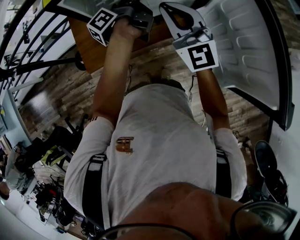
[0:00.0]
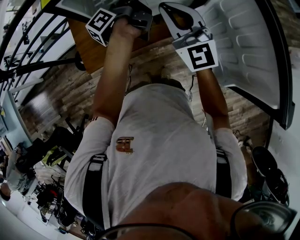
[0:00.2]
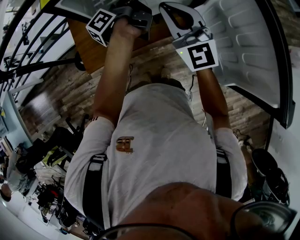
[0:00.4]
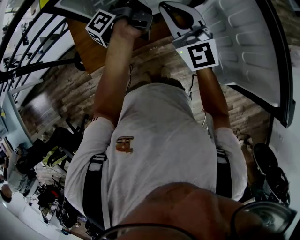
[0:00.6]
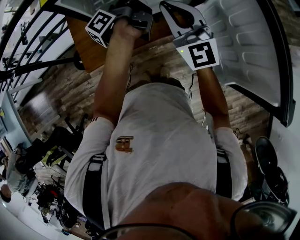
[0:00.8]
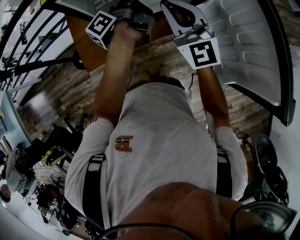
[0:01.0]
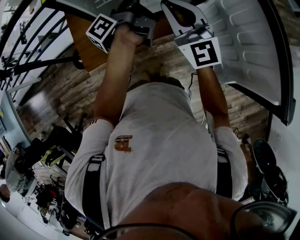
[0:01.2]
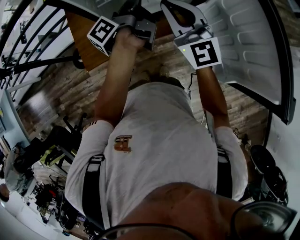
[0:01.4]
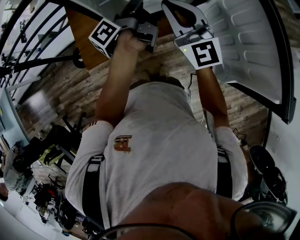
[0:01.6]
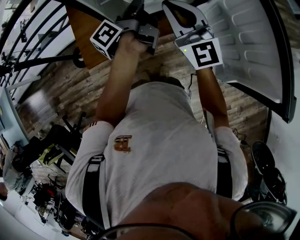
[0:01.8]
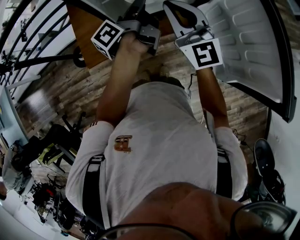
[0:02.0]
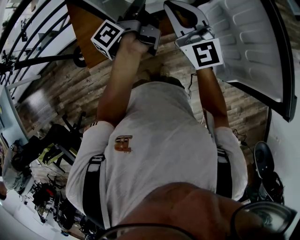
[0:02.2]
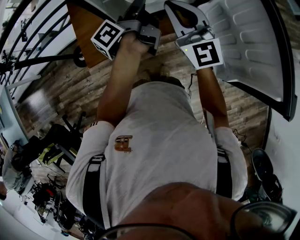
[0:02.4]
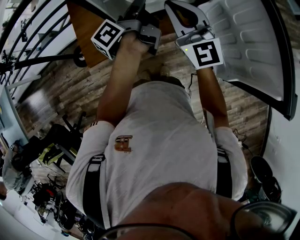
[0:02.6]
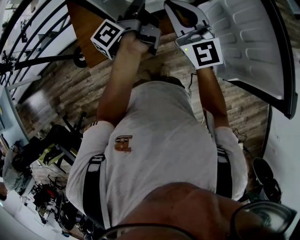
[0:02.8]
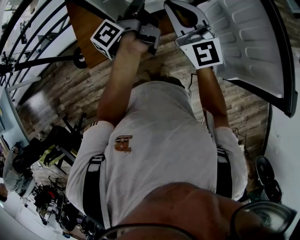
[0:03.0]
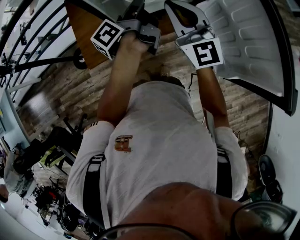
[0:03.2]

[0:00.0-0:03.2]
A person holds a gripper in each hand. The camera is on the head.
0:00.0 to 0:01.6: The grippers move only a little.
0:01.6 to 0:03.2: The grippers stay close to where they were, moving slightly.

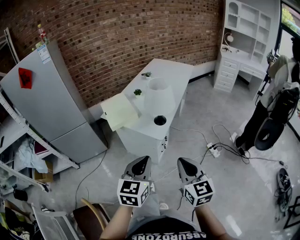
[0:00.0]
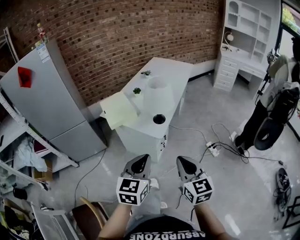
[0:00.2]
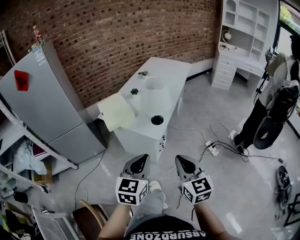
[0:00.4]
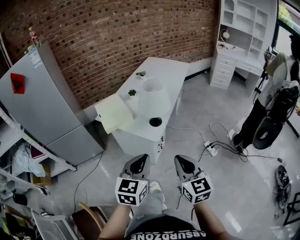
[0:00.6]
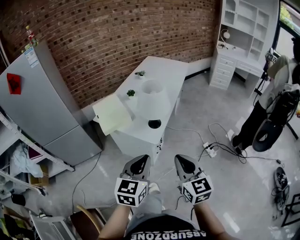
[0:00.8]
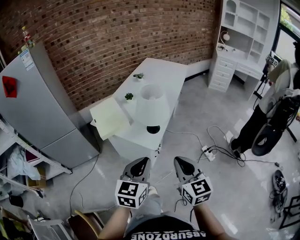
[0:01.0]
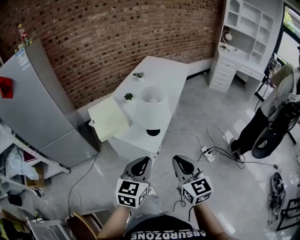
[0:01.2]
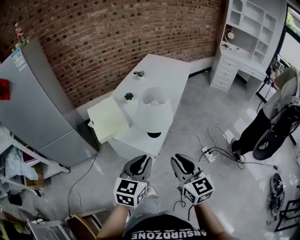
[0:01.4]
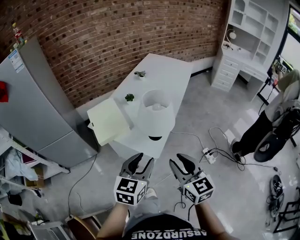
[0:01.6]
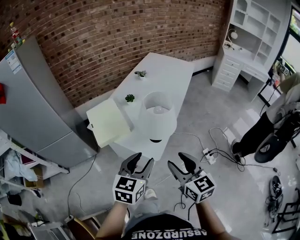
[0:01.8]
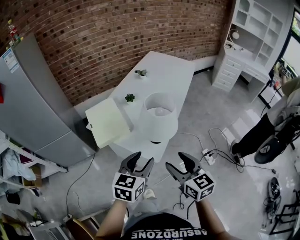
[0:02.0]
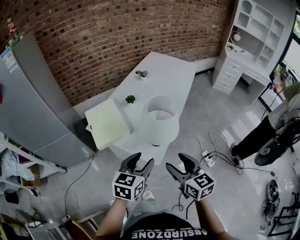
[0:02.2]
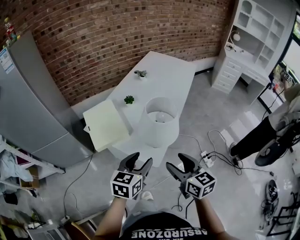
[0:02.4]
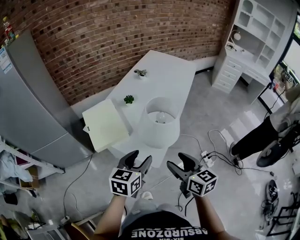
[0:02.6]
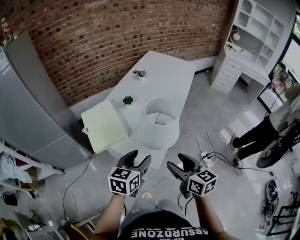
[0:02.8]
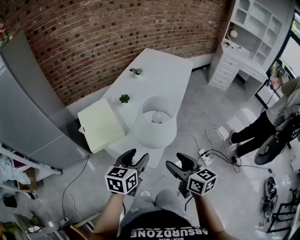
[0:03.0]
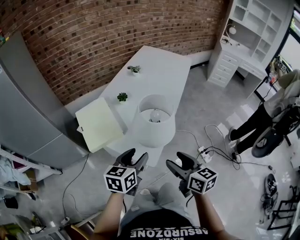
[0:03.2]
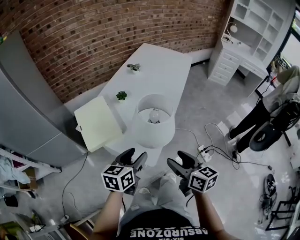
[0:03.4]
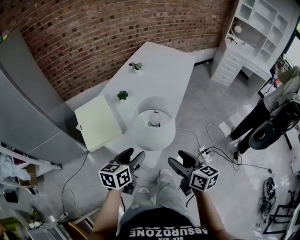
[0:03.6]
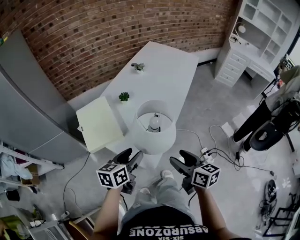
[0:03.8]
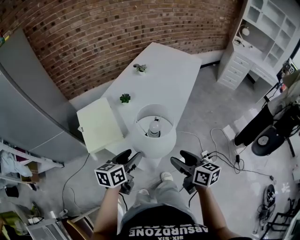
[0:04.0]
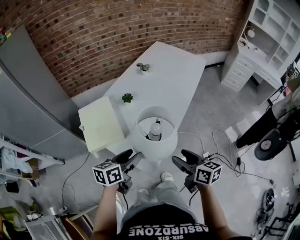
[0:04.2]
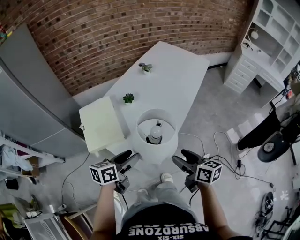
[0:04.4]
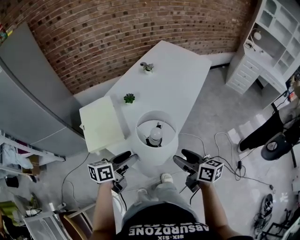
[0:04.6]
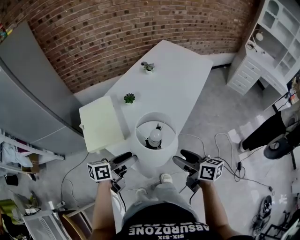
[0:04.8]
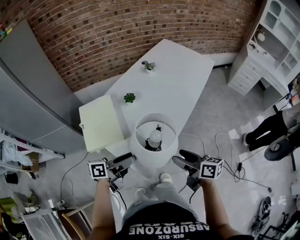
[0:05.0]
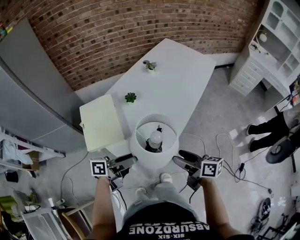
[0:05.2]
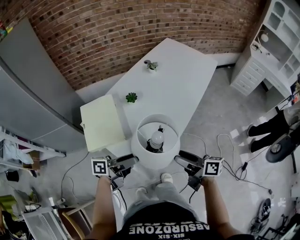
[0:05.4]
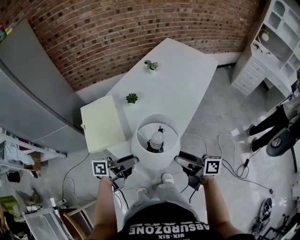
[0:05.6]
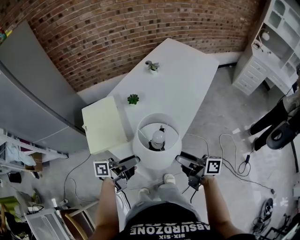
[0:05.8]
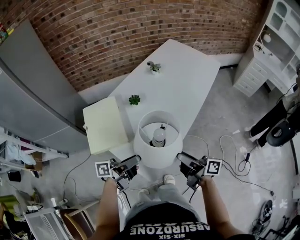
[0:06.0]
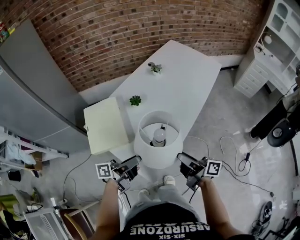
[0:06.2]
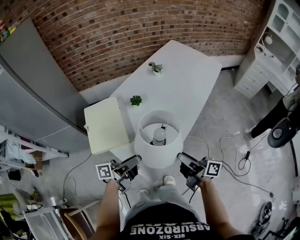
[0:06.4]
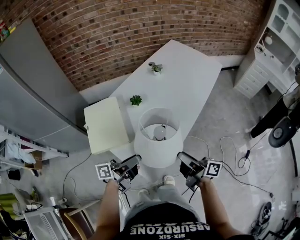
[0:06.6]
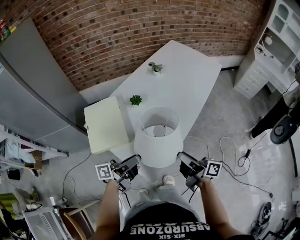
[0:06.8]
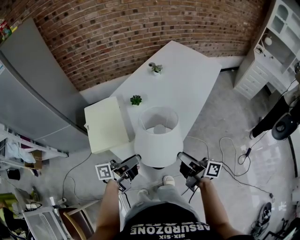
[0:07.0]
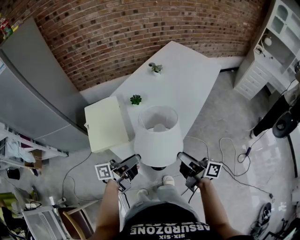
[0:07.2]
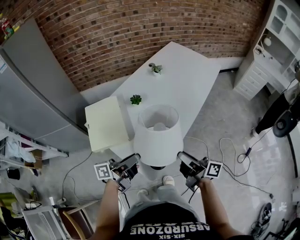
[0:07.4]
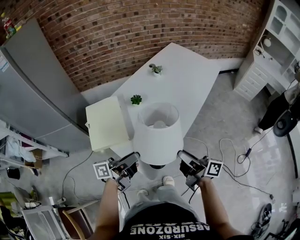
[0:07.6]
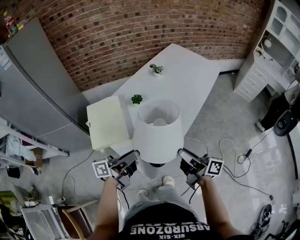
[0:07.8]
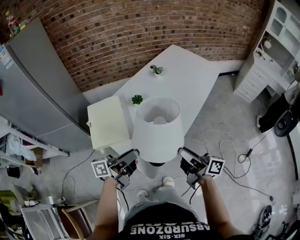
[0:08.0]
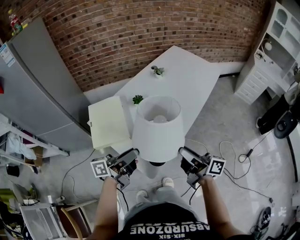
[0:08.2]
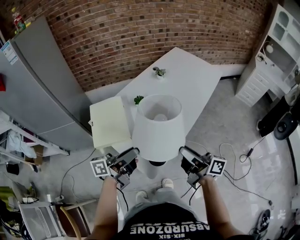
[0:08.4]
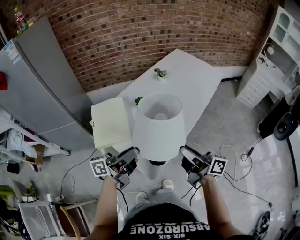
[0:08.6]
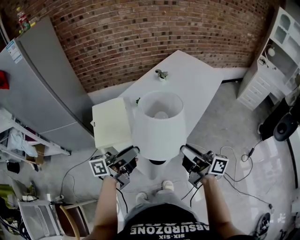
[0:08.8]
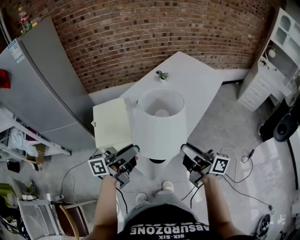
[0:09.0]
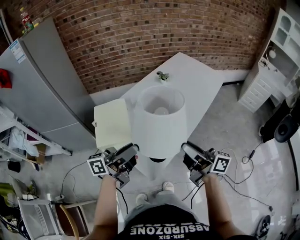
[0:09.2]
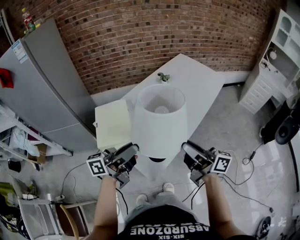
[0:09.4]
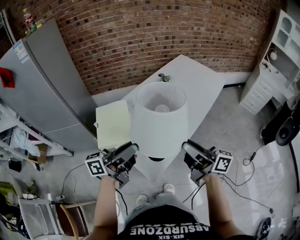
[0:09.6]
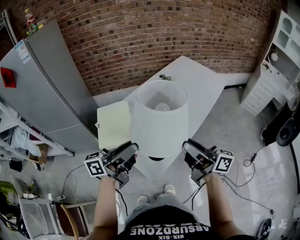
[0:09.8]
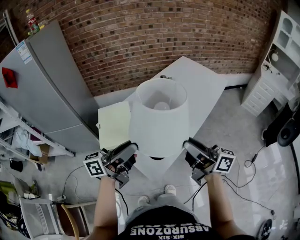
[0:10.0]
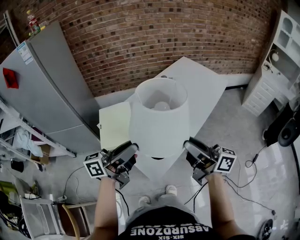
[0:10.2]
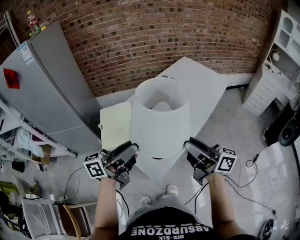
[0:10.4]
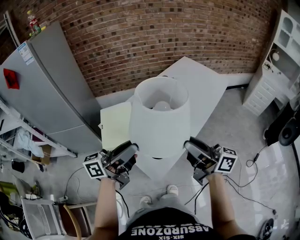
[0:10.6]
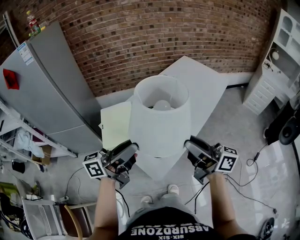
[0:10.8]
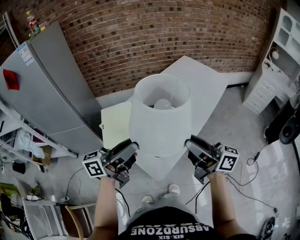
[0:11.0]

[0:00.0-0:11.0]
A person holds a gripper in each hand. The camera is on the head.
0:00.0 to 0:01.6: The two grippers go roughly 20 cm forward. The right gripper opens its fingers; the left gripper opens up.
0:01.6 to 0:03.2: The grippers both shift forward and downward by some 15 cm. The right gripper changes its angle by some 20 degrees, and opens up.
0:03.2 to 0:04.8: The left gripper shifts some 10 cm forward, and swivels some 30 degrees, while the right gripper shifts approximately 15 cm forward and to the right, and changes its angle by some 20 degrees.
0:04.8 to 0:06.2: The left gripper turns by approximately 30 degrees; the right gripper changes its angle by approximately 30 degrees.
0:06.2 to 0:07.8: The left gripper moves approximately 5 cm.
0:07.8 to 0:09.4: The grippers both shift upward by some 10 cm.
0:09.4 to 0:11.0: The right gripper shifts by some 5 cm. Meanwhile the left gripper is displaced upward by roughly 5 cm.

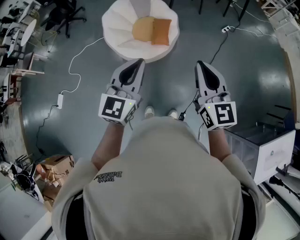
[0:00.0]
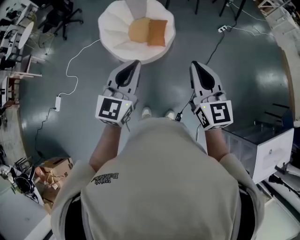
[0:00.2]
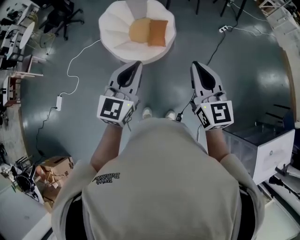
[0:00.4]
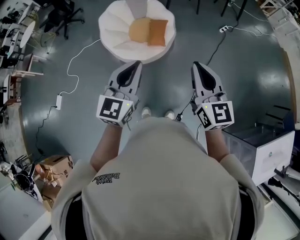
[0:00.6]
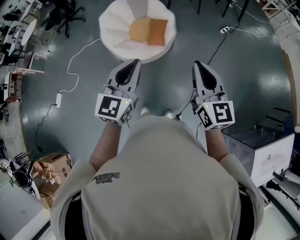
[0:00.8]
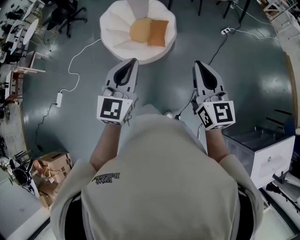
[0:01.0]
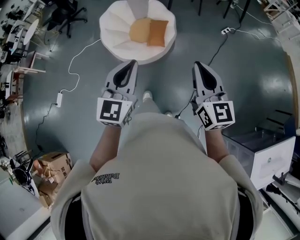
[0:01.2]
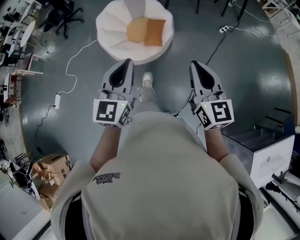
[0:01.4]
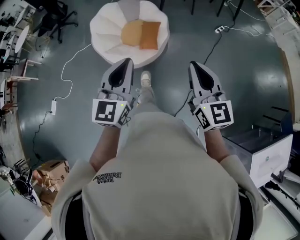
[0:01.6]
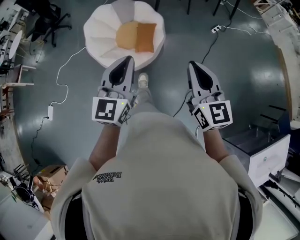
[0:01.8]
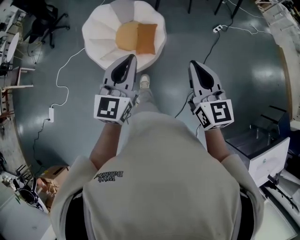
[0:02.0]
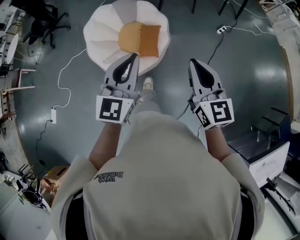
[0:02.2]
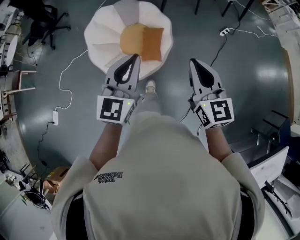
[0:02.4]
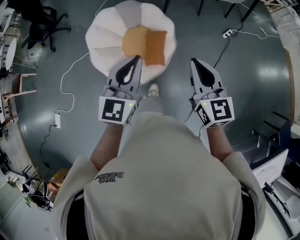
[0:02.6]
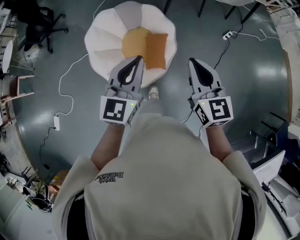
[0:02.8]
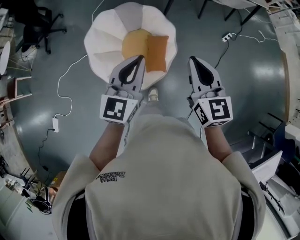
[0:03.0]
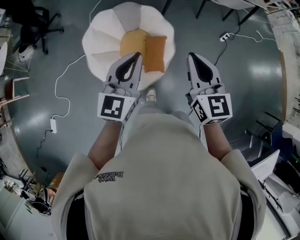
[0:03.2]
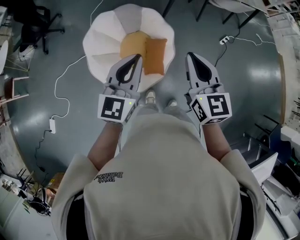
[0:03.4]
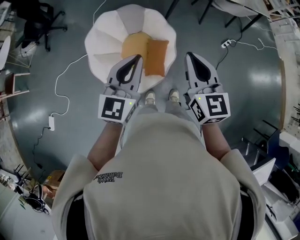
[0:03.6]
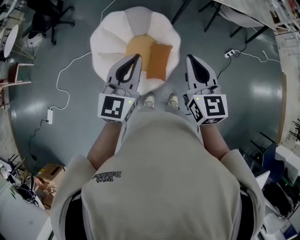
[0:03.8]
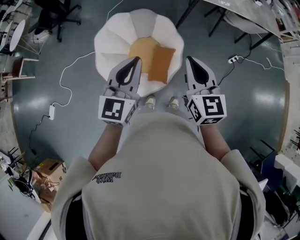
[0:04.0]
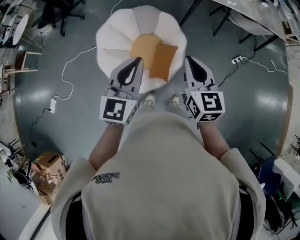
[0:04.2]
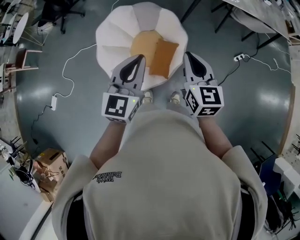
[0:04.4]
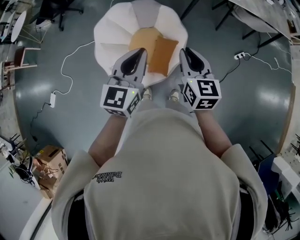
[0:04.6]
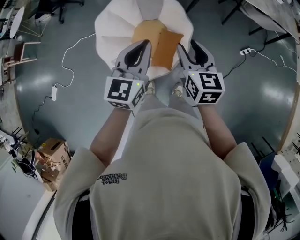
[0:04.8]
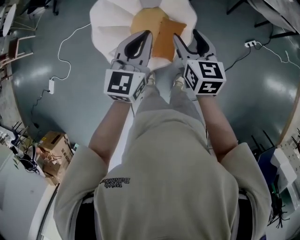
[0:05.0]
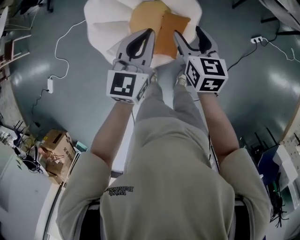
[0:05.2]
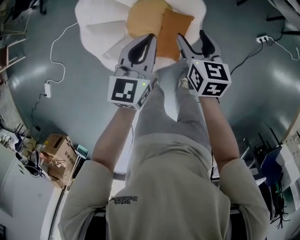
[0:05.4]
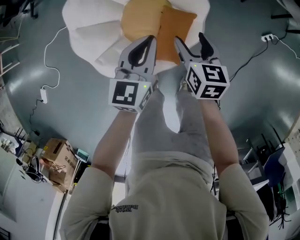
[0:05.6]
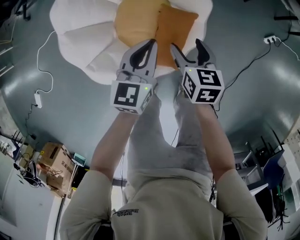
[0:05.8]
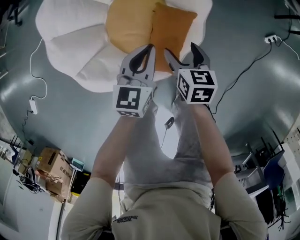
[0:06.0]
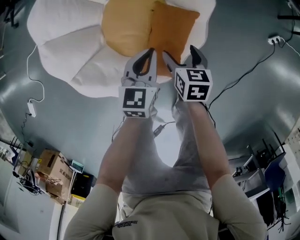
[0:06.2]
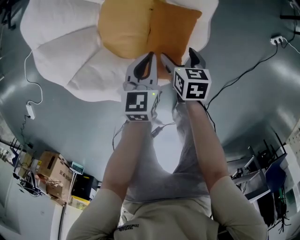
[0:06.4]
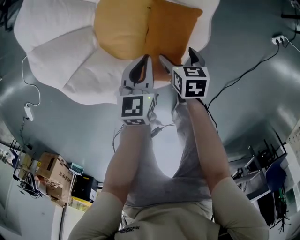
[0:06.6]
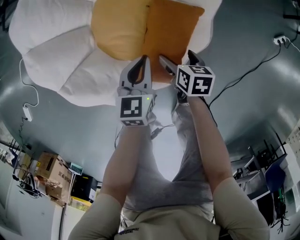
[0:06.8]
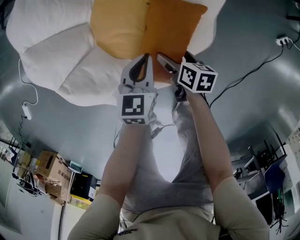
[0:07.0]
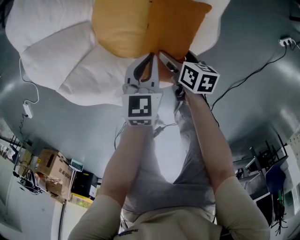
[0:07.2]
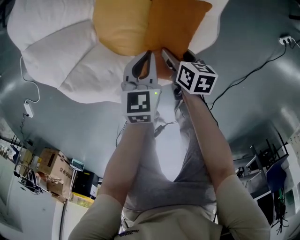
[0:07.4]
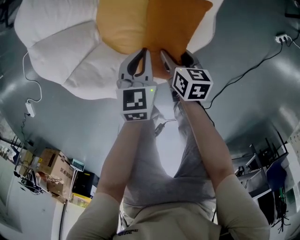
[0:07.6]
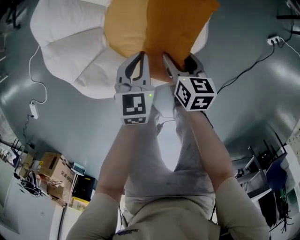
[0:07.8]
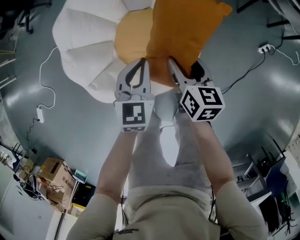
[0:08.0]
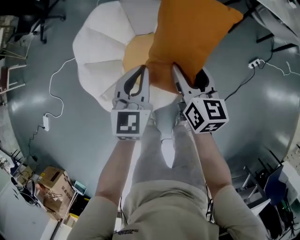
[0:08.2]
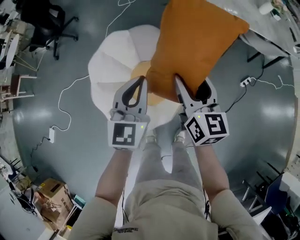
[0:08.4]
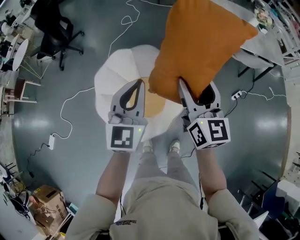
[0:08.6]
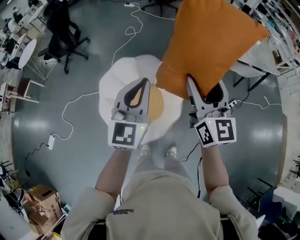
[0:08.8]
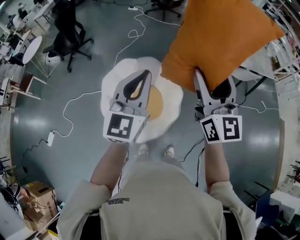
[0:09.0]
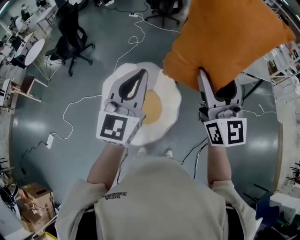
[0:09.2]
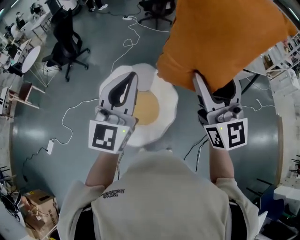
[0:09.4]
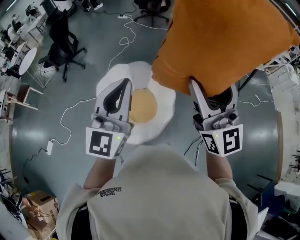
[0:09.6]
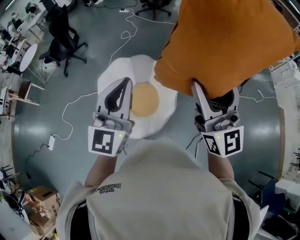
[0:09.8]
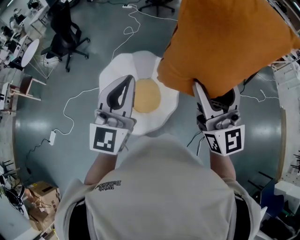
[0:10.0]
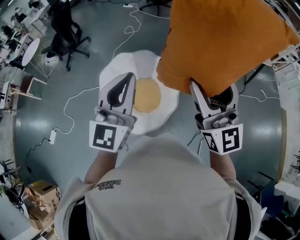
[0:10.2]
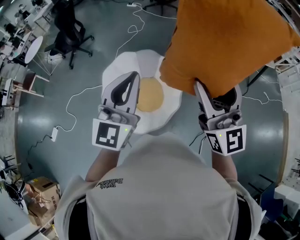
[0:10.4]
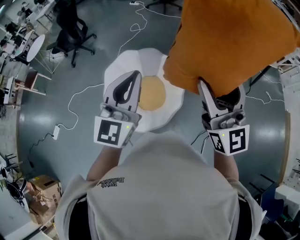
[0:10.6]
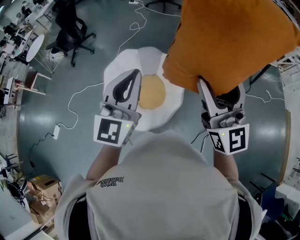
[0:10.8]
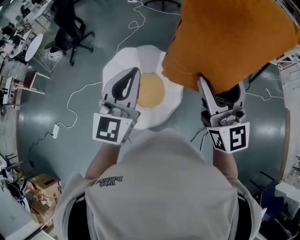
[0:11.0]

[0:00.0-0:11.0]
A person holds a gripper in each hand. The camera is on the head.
0:00.0 to 0:01.6: The left gripper goes roughly 10 cm forward and to the right; the right gripper travels to the right and forward by about 10 cm.
0:01.6 to 0:03.2: The two grippers travel together, forward, roughly 40 cm.
0:03.2 to 0:04.8: The right gripper travels forward and downward by roughly 15 cm, while the left gripper travels forward by about 10 cm.
0:04.8 to 0:06.2: Both grippers move downward, approximately 60 cm. The left gripper rotates roughly 20 degrees. The right gripper changes its angle by about 30 degrees, and opens up.
0:06.2 to 0:07.8: The left gripper reaches about 10 cm downward, then returns, while the right gripper travels downward and back again, approximately 15 cm each way.
0:07.8 to 0:09.4: The two grippers go roughly 80 cm upward. The right gripper tilts its fingers some 60 degrees upward. The left gripper tilts its fingers about 50 degrees upward.
0:09.4 to 0:11.0: The two grippers go about 5 cm downward.
